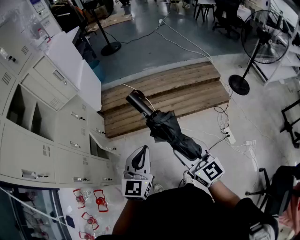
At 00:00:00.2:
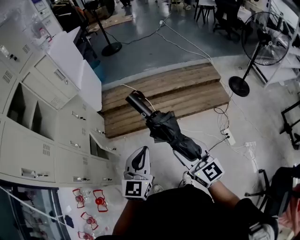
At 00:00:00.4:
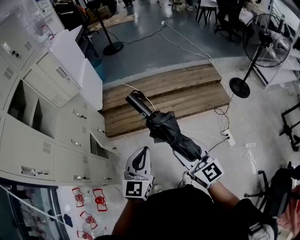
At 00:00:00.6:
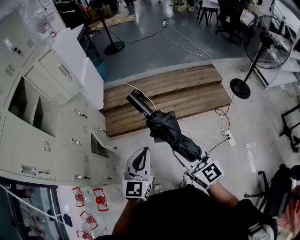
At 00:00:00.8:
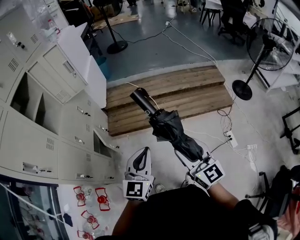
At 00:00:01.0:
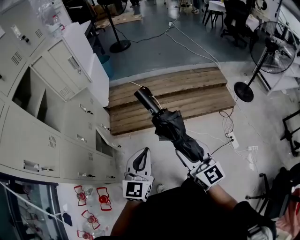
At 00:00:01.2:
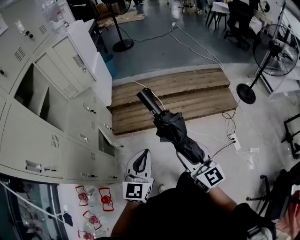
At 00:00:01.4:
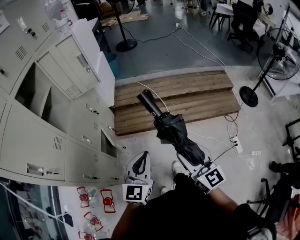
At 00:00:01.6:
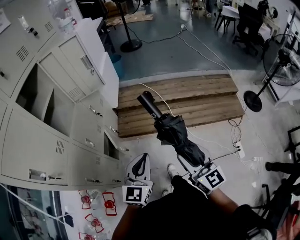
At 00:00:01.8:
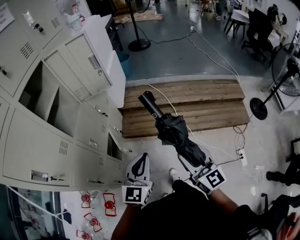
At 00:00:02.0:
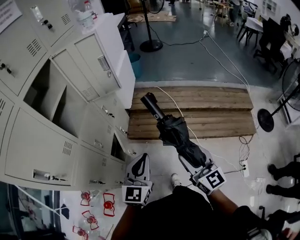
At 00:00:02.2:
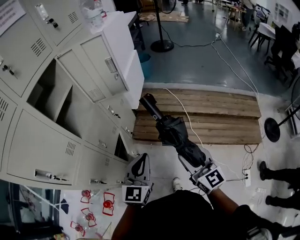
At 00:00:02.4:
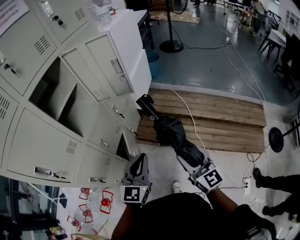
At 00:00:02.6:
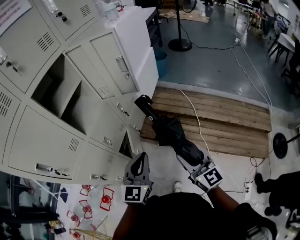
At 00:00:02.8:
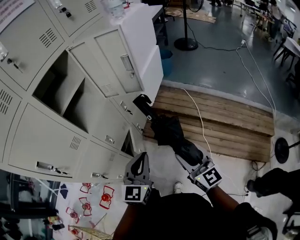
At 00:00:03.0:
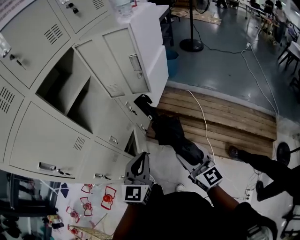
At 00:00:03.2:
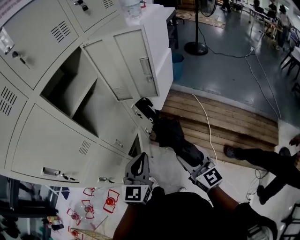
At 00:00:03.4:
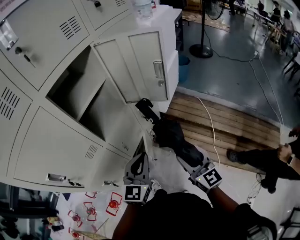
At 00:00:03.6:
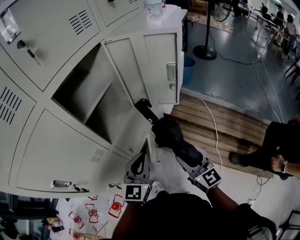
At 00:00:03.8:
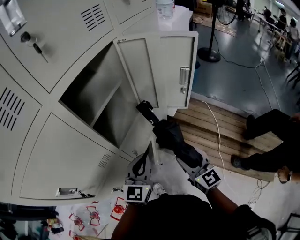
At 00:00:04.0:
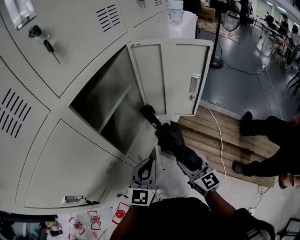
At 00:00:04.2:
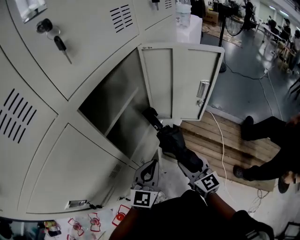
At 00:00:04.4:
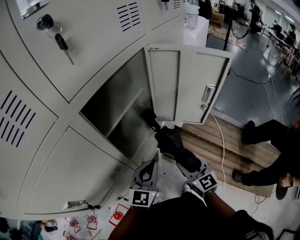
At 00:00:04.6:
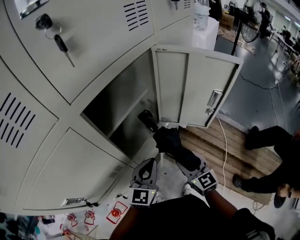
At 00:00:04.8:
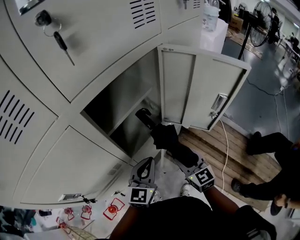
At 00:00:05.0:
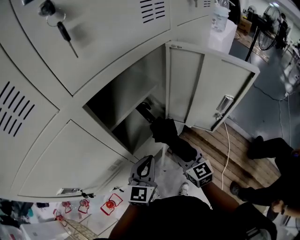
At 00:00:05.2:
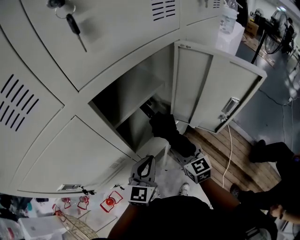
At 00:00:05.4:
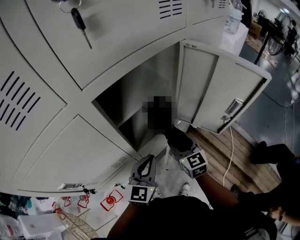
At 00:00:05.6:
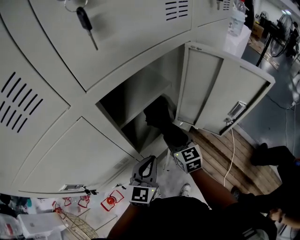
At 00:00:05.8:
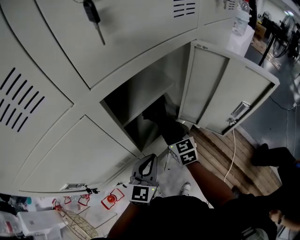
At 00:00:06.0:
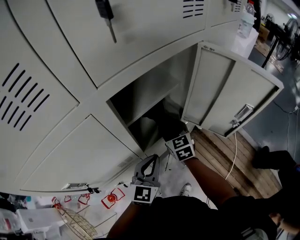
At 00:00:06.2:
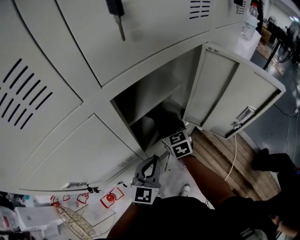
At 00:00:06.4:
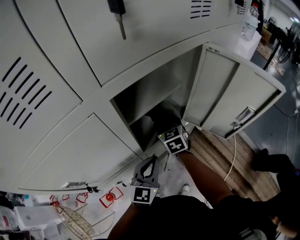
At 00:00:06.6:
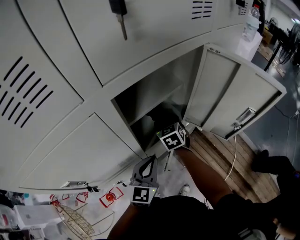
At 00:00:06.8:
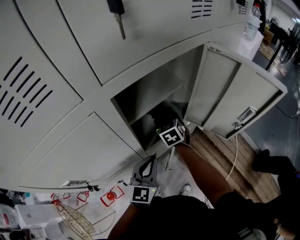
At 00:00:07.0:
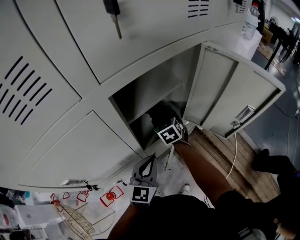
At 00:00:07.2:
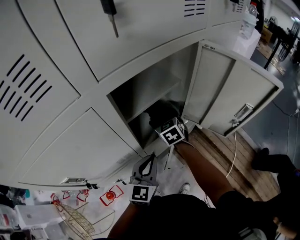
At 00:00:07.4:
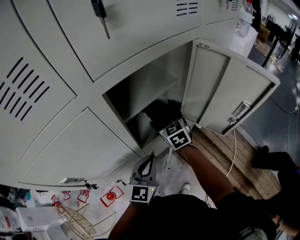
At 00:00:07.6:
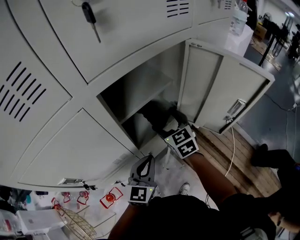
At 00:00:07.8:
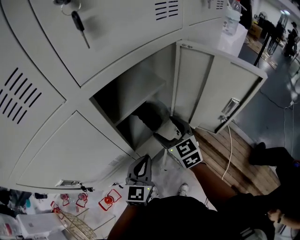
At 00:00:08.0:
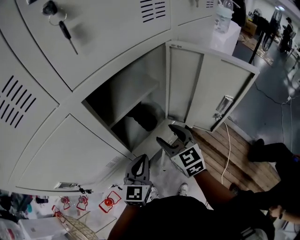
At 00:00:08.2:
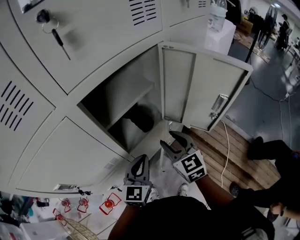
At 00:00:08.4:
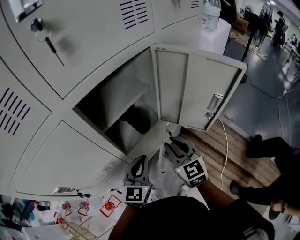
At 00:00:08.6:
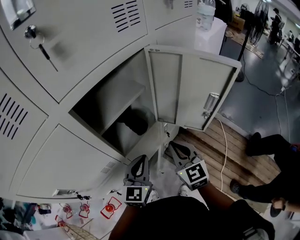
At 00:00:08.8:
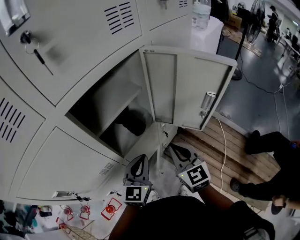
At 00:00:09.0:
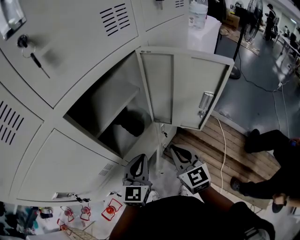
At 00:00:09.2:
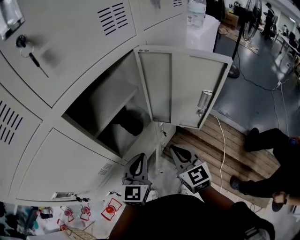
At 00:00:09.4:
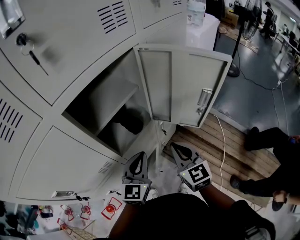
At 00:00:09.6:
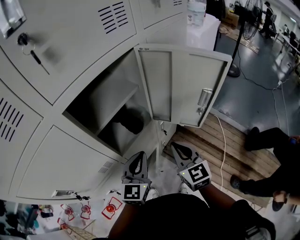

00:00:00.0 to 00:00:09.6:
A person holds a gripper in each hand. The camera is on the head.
00:00:00.0 to 00:00:01.6: The right gripper shifts some 15 cm to the left and forward, while the left gripper is displaced to the left by approximately 20 cm.
00:00:01.6 to 00:00:03.2: The left gripper changes place by approximately 25 cm, and swivels approximately 30 degrees, while the right gripper moves some 30 cm, and turns by about 30 degrees.
00:00:03.2 to 00:00:04.8: The grippers both shift forward and to the left by roughly 25 cm. The right gripper swivels about 20 degrees.
00:00:04.8 to 00:00:06.4: The right gripper goes approximately 20 cm forward and to the left.
00:00:06.4 to 00:00:08.0: The right gripper goes some 15 cm backward, upward and to the right.
00:00:08.0 to 00:00:09.6: The left gripper moves roughly 5 cm. The right gripper travels to the right and backward by some 10 cm, and closes.

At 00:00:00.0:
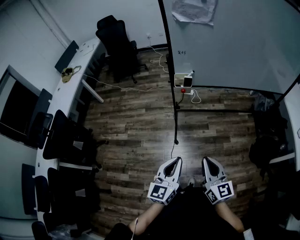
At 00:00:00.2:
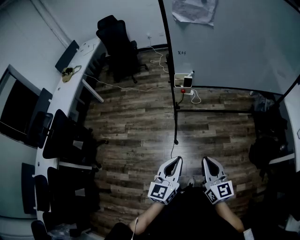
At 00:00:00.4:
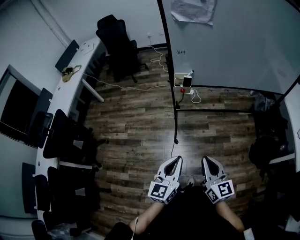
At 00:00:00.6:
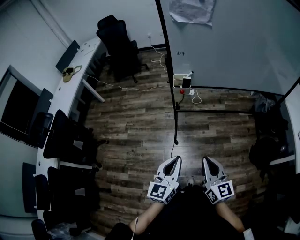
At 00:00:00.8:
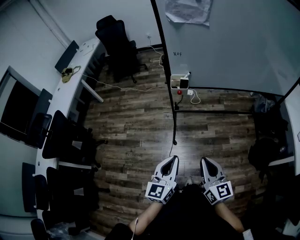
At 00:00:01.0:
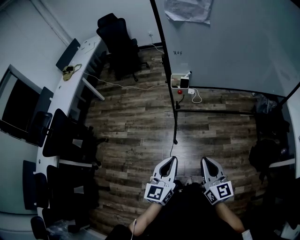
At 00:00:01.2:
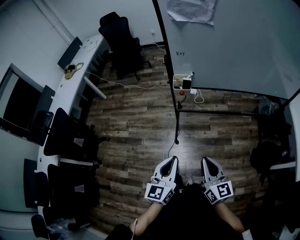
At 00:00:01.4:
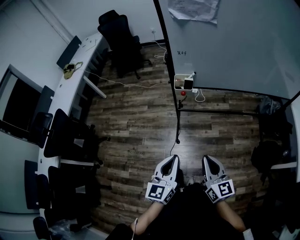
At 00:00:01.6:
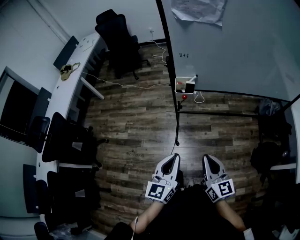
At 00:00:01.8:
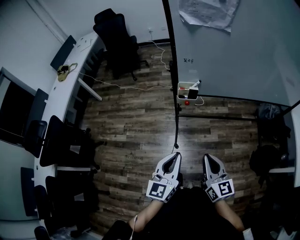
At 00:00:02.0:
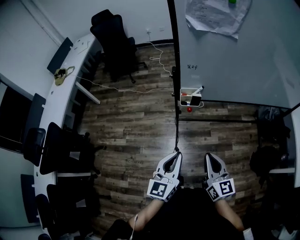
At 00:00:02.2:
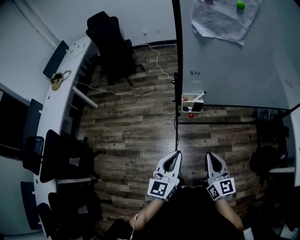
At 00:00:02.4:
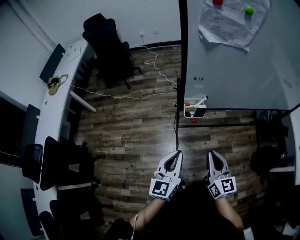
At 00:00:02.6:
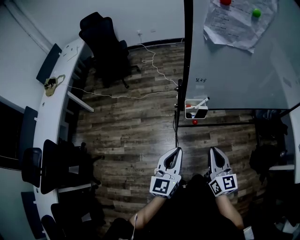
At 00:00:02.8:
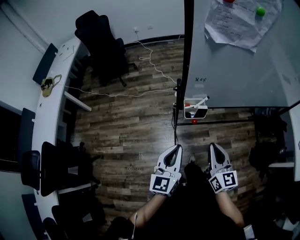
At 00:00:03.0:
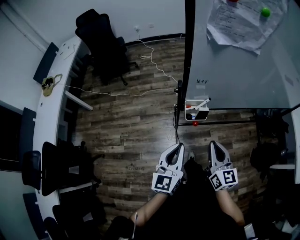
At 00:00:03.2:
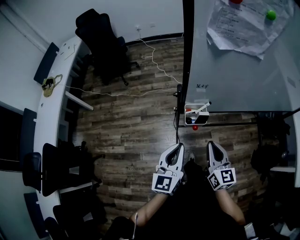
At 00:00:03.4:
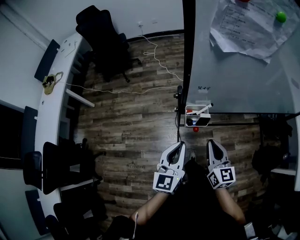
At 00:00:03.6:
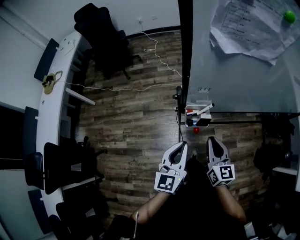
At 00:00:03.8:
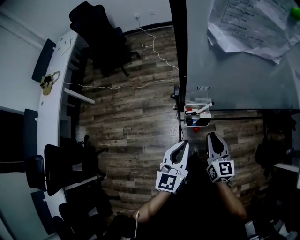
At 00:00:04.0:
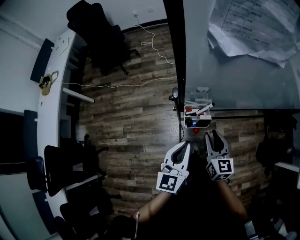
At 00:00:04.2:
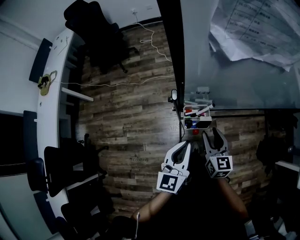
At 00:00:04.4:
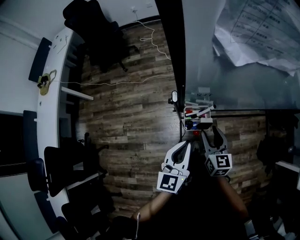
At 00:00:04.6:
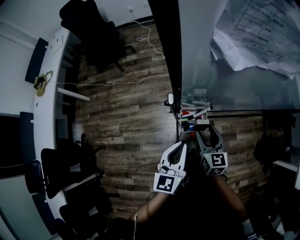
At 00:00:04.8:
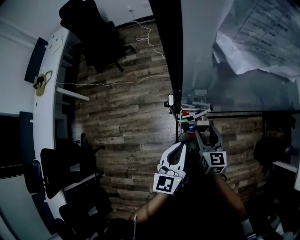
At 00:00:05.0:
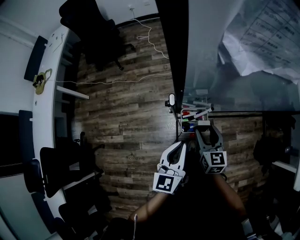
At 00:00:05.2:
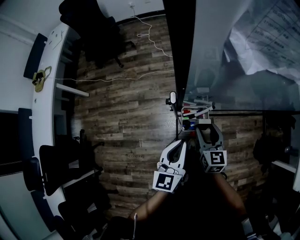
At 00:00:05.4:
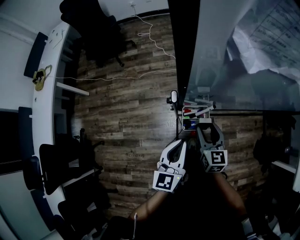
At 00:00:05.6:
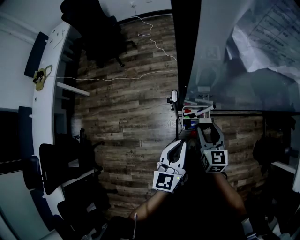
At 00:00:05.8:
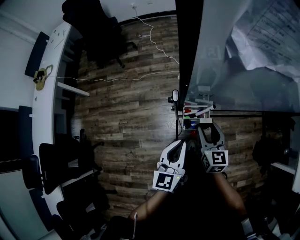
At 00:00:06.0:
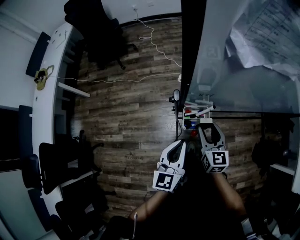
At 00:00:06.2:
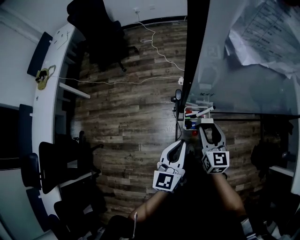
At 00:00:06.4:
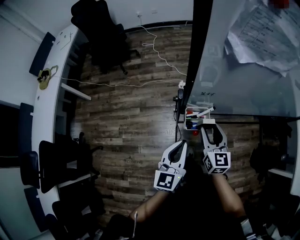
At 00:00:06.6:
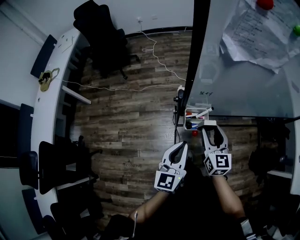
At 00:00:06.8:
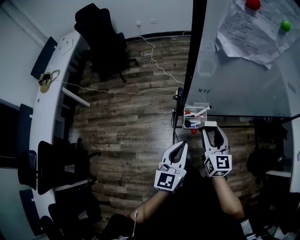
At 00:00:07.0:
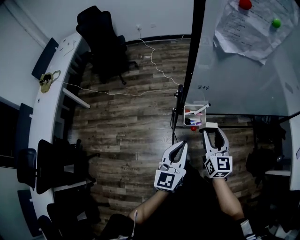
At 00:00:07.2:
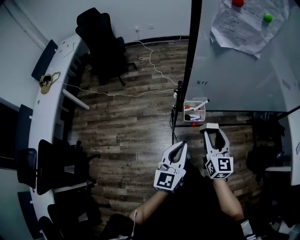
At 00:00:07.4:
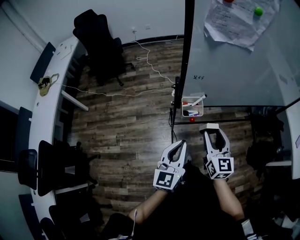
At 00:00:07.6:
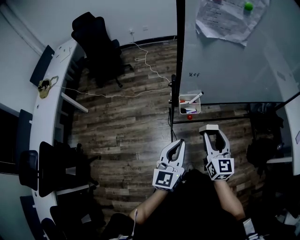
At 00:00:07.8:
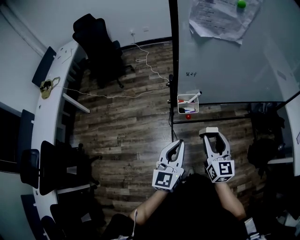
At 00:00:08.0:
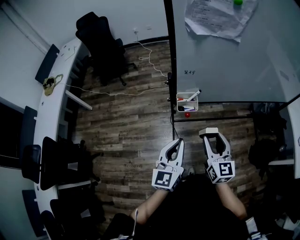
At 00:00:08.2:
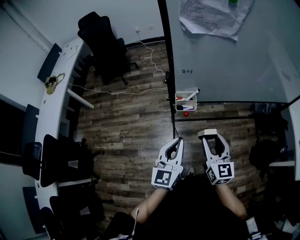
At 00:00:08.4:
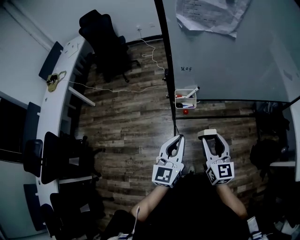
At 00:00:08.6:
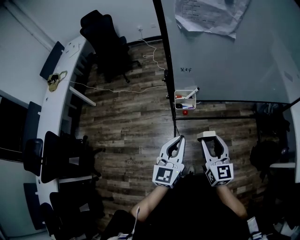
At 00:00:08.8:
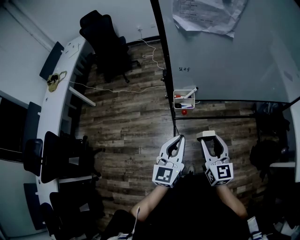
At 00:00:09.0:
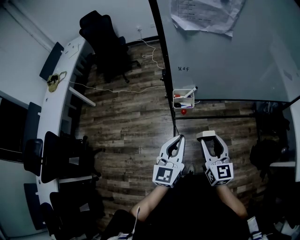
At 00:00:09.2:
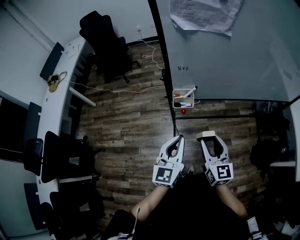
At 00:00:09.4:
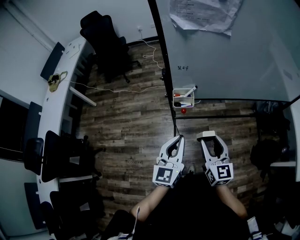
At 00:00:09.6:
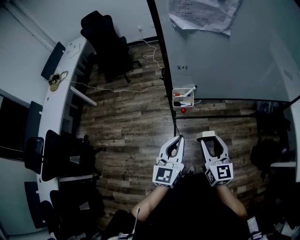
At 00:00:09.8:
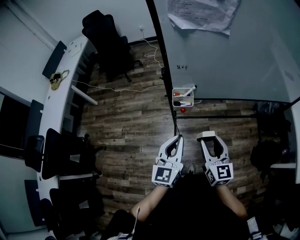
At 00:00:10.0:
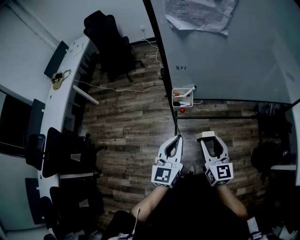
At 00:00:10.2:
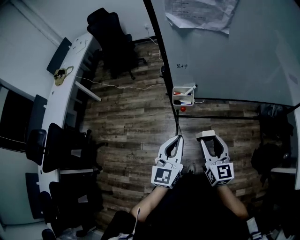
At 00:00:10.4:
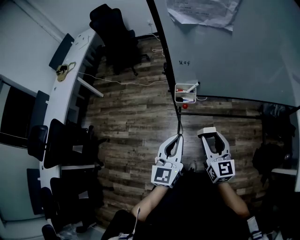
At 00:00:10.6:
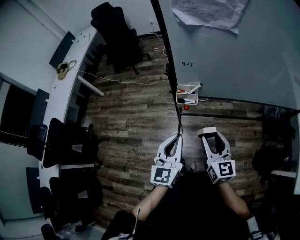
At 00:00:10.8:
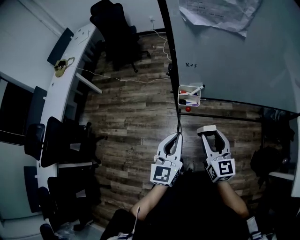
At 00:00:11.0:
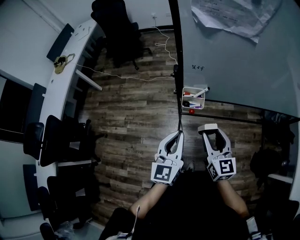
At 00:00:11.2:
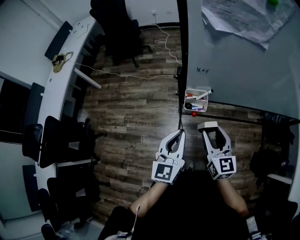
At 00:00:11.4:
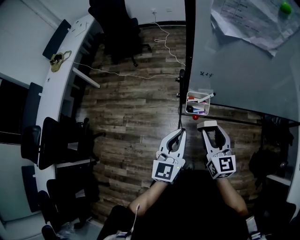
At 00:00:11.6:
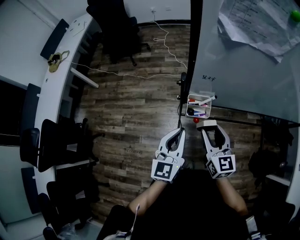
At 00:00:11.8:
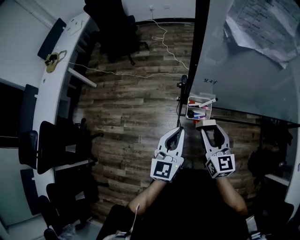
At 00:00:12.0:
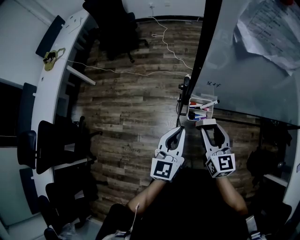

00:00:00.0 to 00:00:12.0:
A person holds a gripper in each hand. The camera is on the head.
00:00:00.0 to 00:00:01.6: Both grippers move forward, some 10 cm.
00:00:01.6 to 00:00:03.0: The grippers both shift forward by about 25 cm.
00:00:03.0 to 00:00:04.4: The right gripper is displaced forward and downward by about 15 cm, and opens up. The left gripper travels forward by roughly 10 cm.
00:00:04.4 to 00:00:06.0: The grippers move only a little.
00:00:06.0 to 00:00:07.6: The two grippers go about 15 cm backward and upward.
00:00:07.6 to 00:00:09.0: The left gripper travels to the right by about 5 cm. The right gripper changes place by some 5 cm.
00:00:09.0 to 00:00:10.4: The grippers stay close to where they were, moving slightly.
00:00:10.4 to 00:00:12.0: The right gripper goes about 20 cm forward and to the left. The left gripper heads forward, covering roughly 15 cm.

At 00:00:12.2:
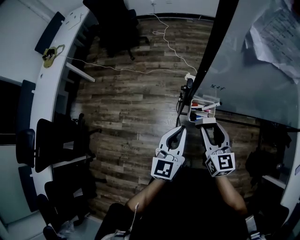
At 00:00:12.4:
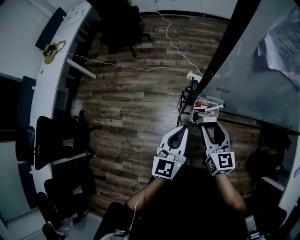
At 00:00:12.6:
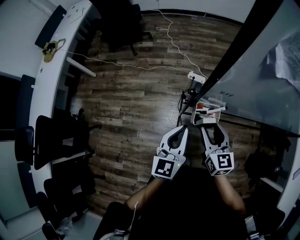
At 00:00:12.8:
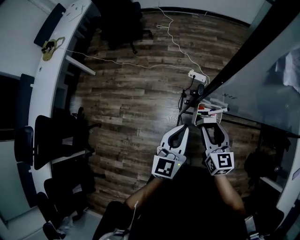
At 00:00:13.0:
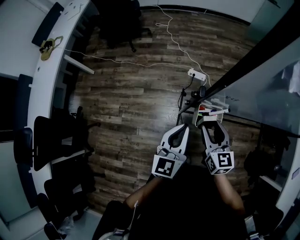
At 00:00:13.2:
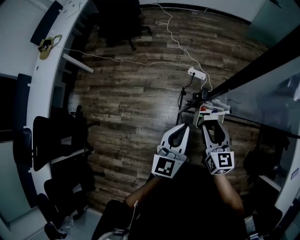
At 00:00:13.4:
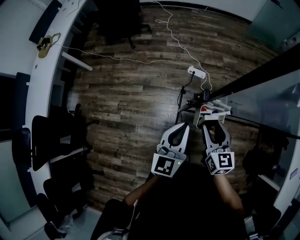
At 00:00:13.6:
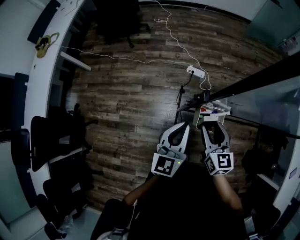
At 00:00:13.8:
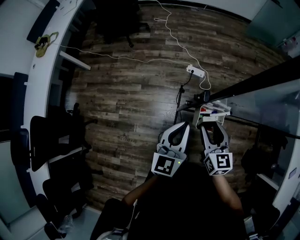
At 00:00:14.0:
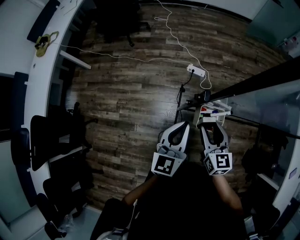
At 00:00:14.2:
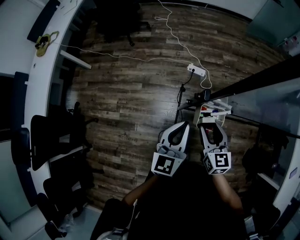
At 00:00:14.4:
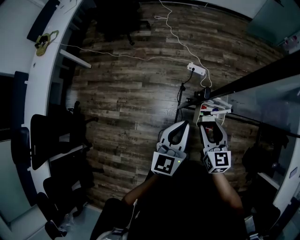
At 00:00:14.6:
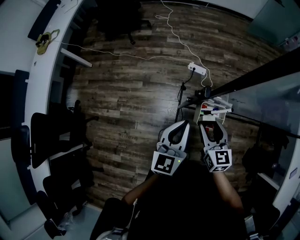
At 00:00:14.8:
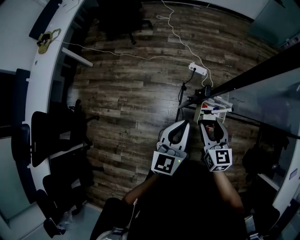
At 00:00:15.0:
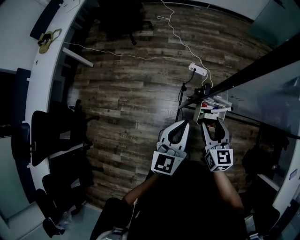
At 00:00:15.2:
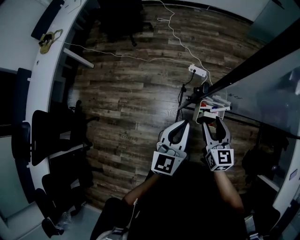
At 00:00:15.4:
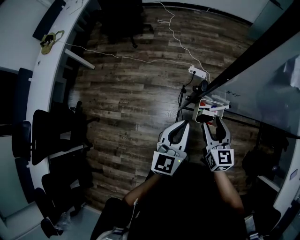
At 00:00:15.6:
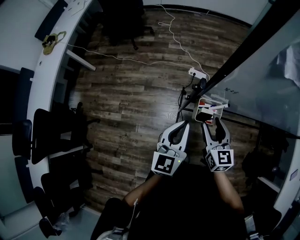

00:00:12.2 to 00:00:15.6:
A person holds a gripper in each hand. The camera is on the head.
00:00:12.2 to 00:00:13.8: The left gripper goes roughly 5 cm forward, while the right gripper ends up roughly 5 cm from where it was.
00:00:13.8 to 00:00:15.6: The grippers move only a little.
